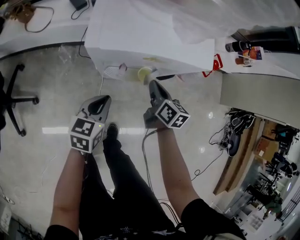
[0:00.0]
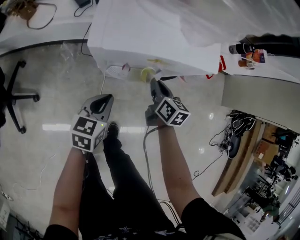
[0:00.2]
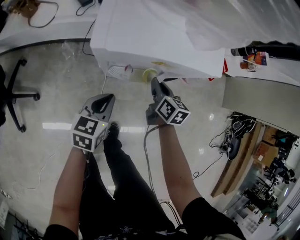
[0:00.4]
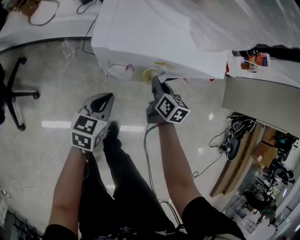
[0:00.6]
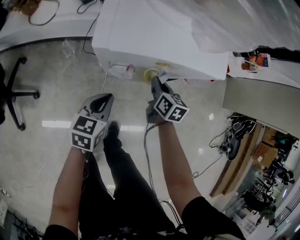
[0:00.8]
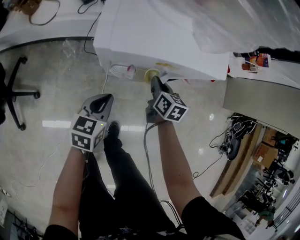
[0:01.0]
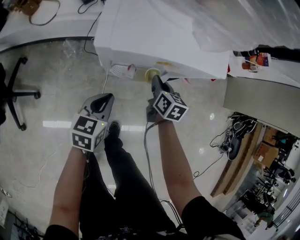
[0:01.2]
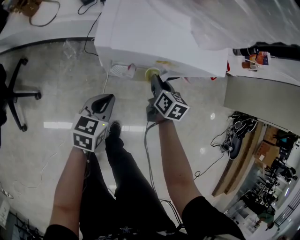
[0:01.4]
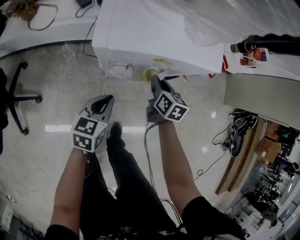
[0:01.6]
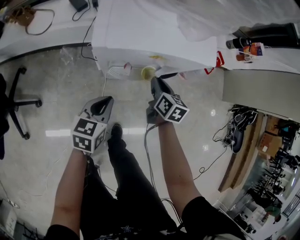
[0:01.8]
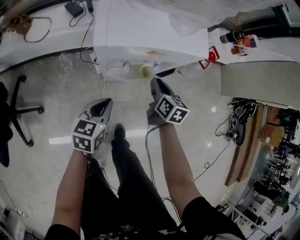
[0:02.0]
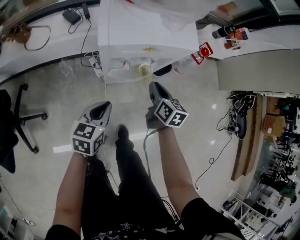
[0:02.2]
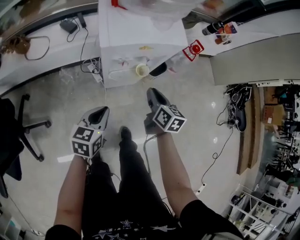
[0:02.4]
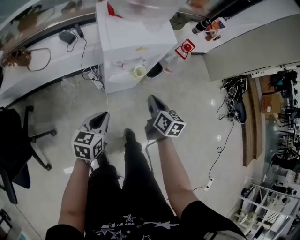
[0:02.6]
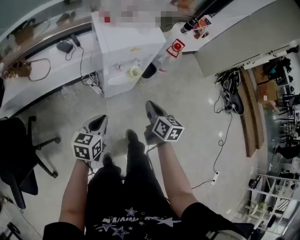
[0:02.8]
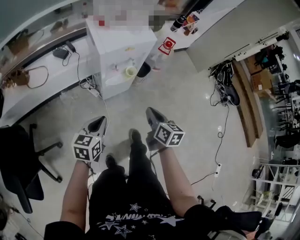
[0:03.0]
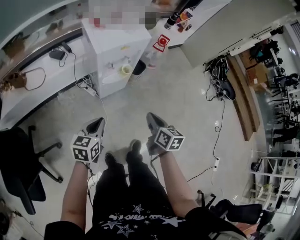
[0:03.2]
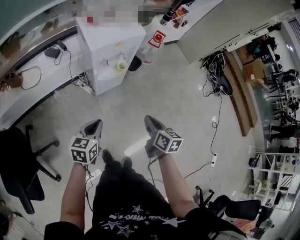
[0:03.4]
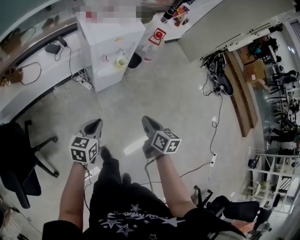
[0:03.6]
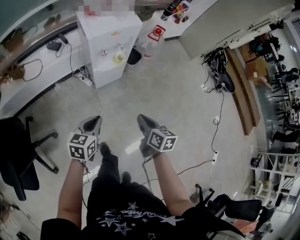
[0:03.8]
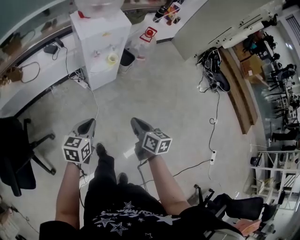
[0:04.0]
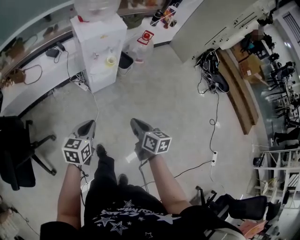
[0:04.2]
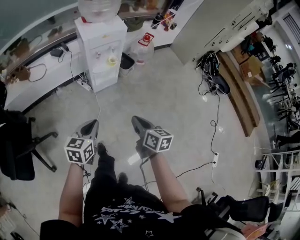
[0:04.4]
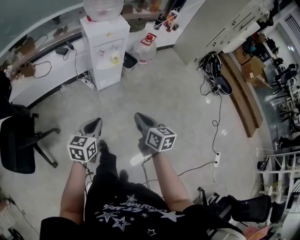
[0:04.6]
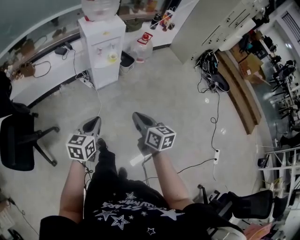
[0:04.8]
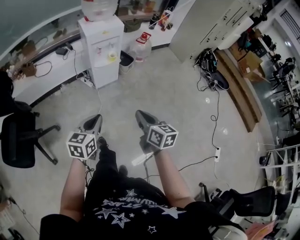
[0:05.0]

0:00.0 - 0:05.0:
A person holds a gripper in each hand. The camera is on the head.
0:00.0 - 0:01.6: The grippers move only a little.
0:01.6 - 0:03.4: The left gripper moves backward and upward, about 30 cm, and changes its angle by approximately 30 degrees; the right gripper moves backward and upward, approximately 50 cm, and turns by approximately 30 degrees.
0:03.4 - 0:05.0: The left gripper heads backward and to the right, covering roughly 35 cm. The right gripper is displaced backward by some 30 cm.

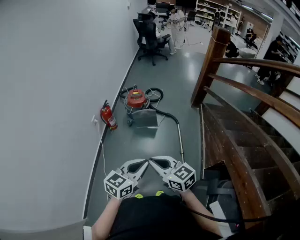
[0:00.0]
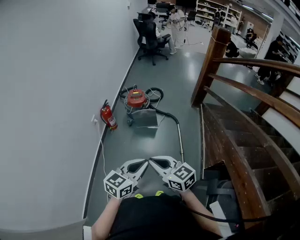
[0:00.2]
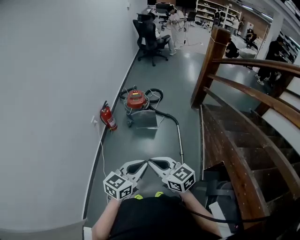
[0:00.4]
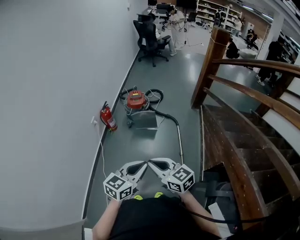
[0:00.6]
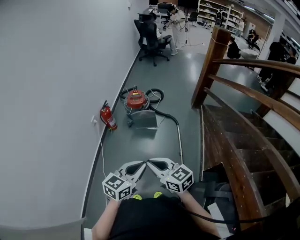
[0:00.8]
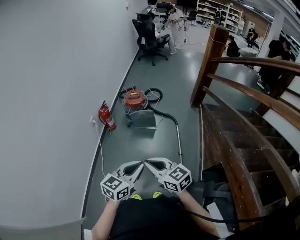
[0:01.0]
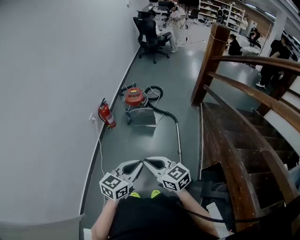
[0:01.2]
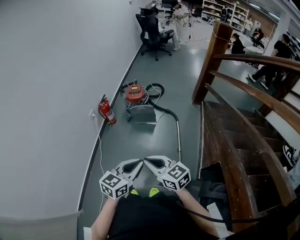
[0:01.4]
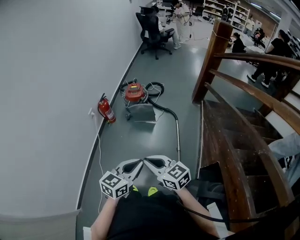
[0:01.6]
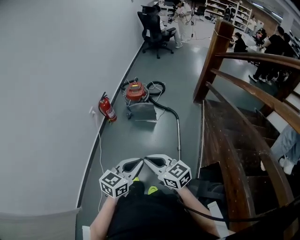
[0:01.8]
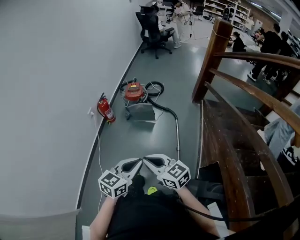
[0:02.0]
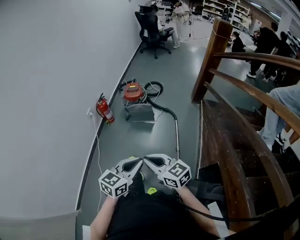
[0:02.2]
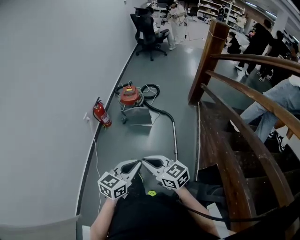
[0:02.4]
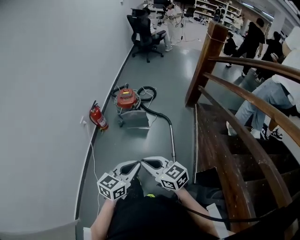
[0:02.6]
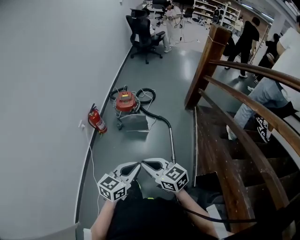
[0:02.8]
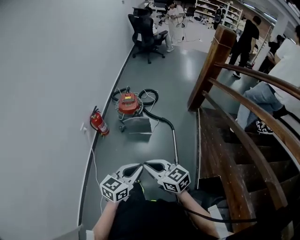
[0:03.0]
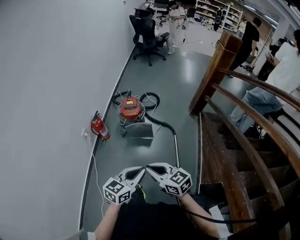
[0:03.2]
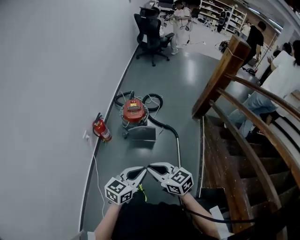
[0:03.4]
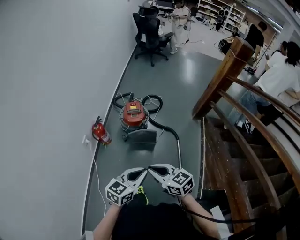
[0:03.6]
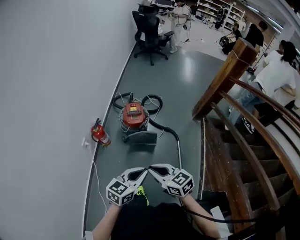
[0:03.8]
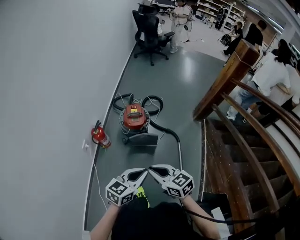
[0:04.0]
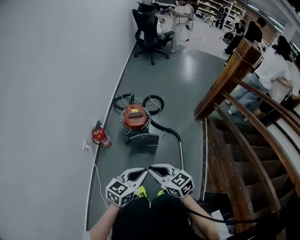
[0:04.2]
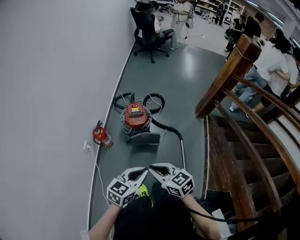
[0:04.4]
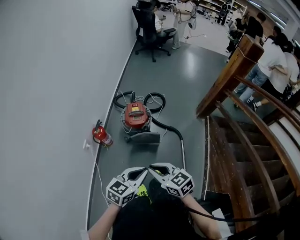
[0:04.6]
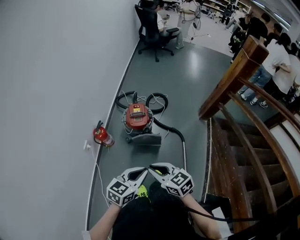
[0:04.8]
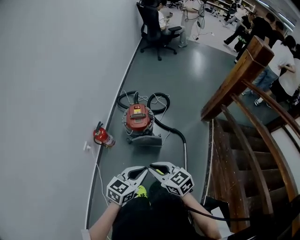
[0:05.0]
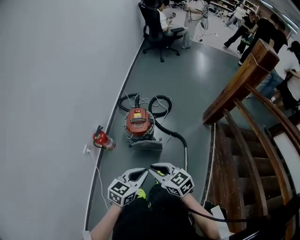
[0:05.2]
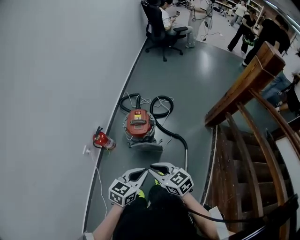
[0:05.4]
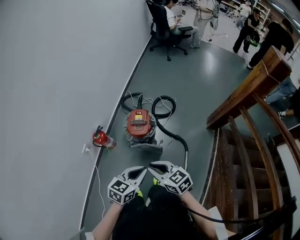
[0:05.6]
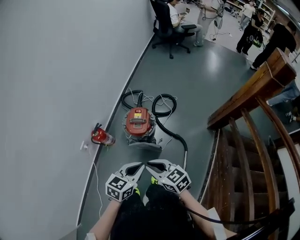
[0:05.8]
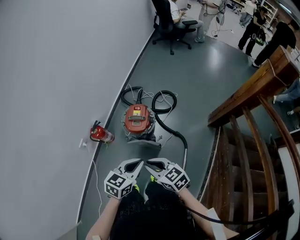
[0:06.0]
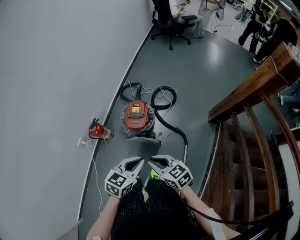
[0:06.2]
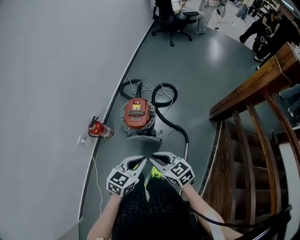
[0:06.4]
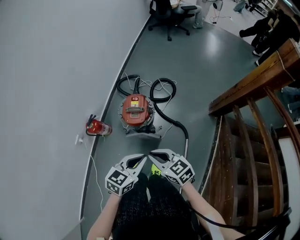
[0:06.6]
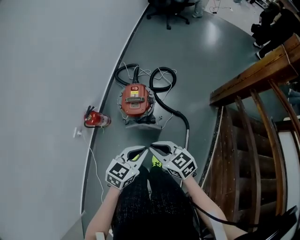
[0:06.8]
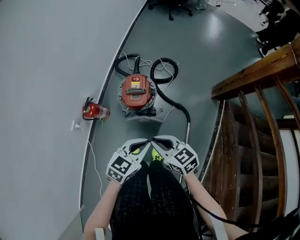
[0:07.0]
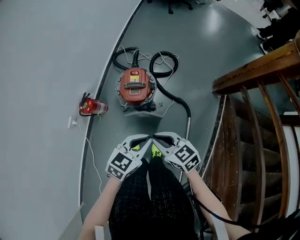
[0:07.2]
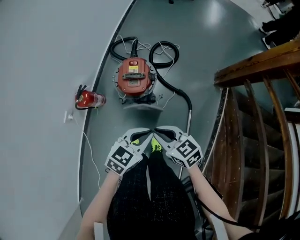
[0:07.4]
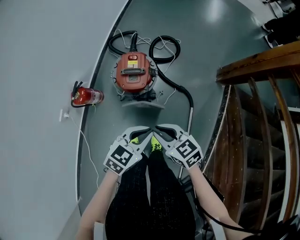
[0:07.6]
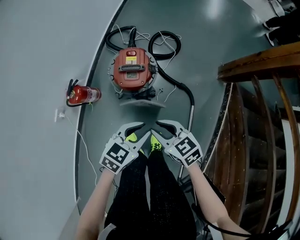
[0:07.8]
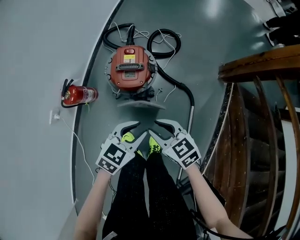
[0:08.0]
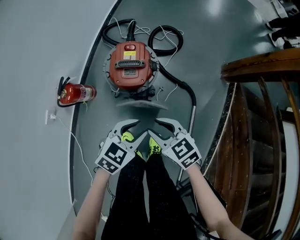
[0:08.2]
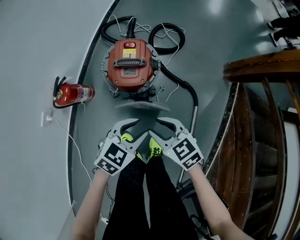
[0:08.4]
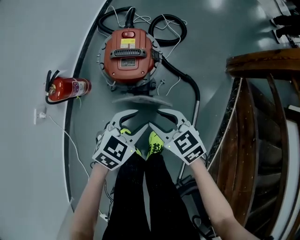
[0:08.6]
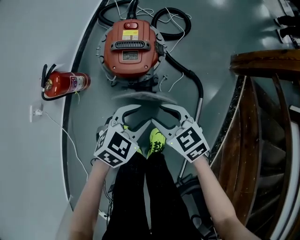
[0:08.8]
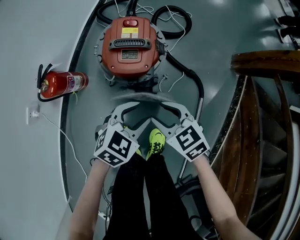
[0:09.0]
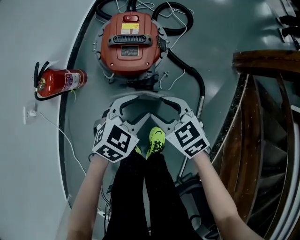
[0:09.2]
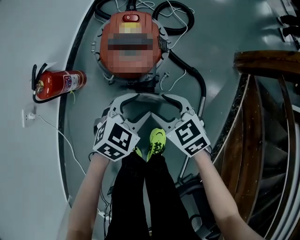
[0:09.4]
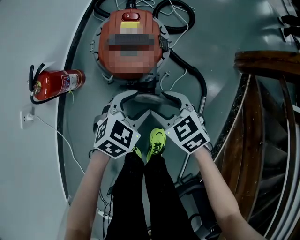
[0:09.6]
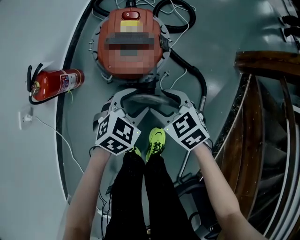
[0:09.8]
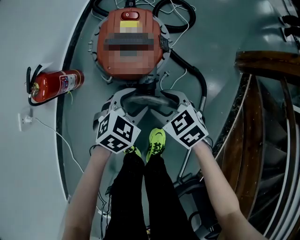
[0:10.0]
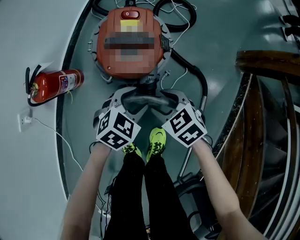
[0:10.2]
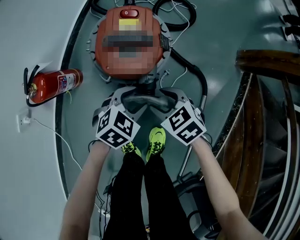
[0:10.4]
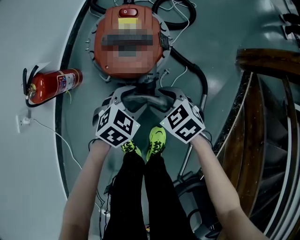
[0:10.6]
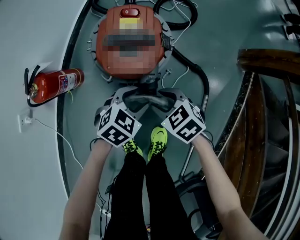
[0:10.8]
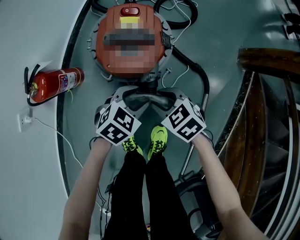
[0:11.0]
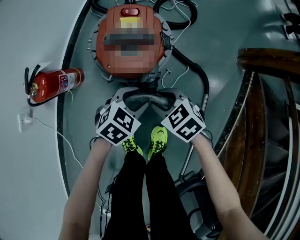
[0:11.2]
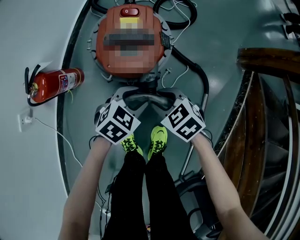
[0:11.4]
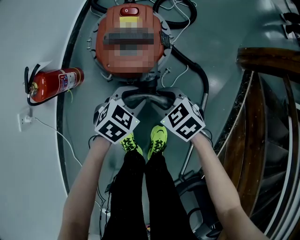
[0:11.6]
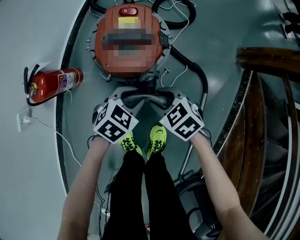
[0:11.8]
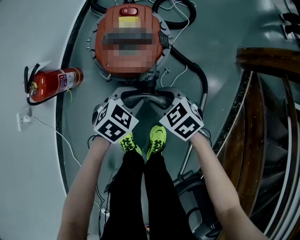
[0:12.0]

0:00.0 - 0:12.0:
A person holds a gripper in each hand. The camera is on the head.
0:00.0 - 0:01.6: Both grippers move to the right, some 5 cm.
0:01.6 - 0:03.0: The two grippers go approximately 15 cm forward.
0:03.0 - 0:04.4: The grippers both shift forward by some 20 cm.
0:04.4 - 0:06.0: The left gripper travels forward and to the right by roughly 20 cm. The right gripper travels forward, to the right and downward by approximately 20 cm.
0:06.0 - 0:07.6: Both grippers move downward, about 15 cm.
0:07.6 - 0:09.0: The two grippers go approximately 20 cm downward. The left gripper opens; the right gripper opens its fingers.
0:09.0 - 0:10.4: Both grippers travel together downward, roughly 10 cm.
0:10.4 - 0:12.0: The left gripper closes its fingers. The right gripper closes up.

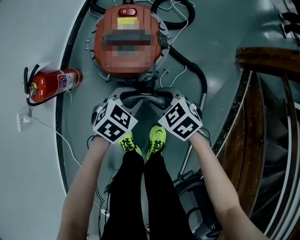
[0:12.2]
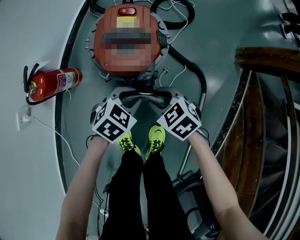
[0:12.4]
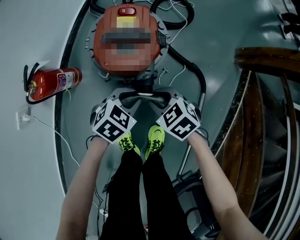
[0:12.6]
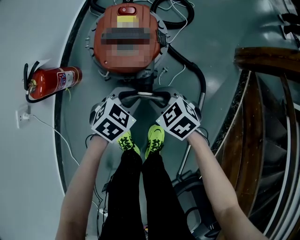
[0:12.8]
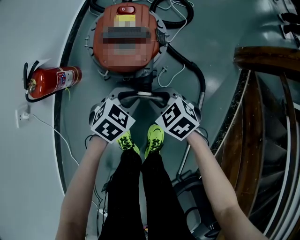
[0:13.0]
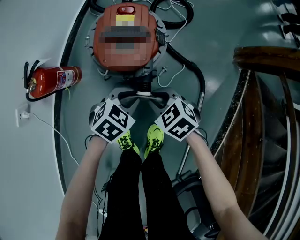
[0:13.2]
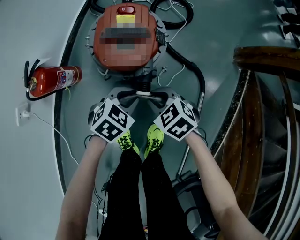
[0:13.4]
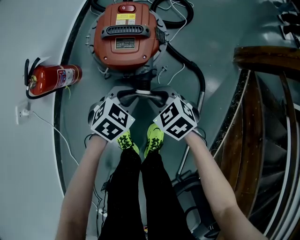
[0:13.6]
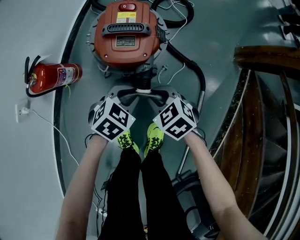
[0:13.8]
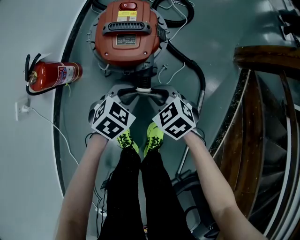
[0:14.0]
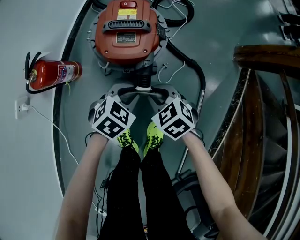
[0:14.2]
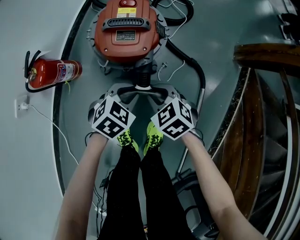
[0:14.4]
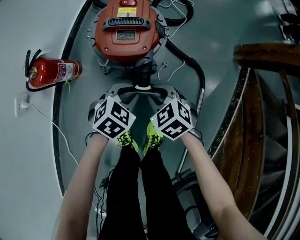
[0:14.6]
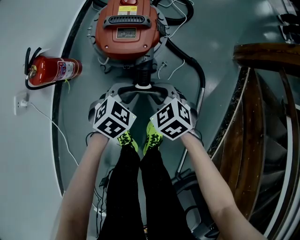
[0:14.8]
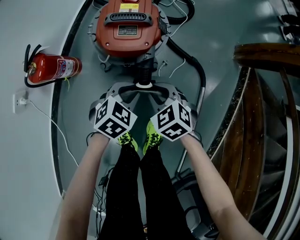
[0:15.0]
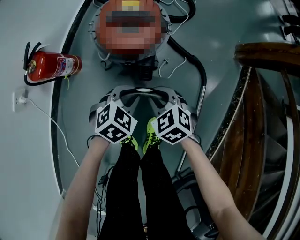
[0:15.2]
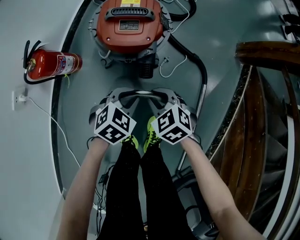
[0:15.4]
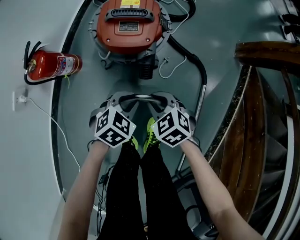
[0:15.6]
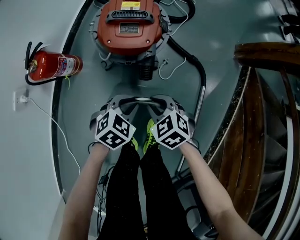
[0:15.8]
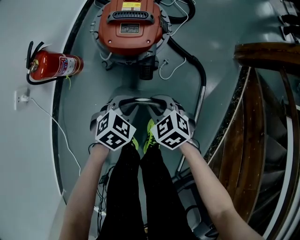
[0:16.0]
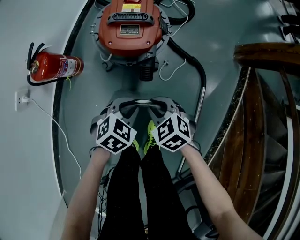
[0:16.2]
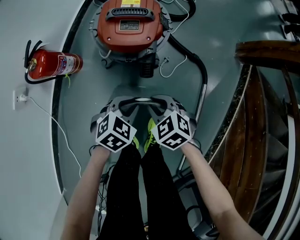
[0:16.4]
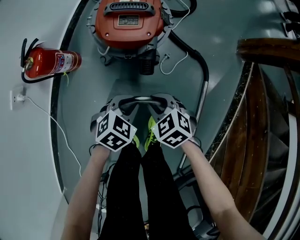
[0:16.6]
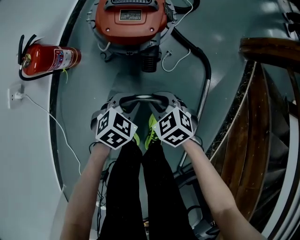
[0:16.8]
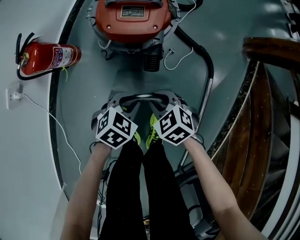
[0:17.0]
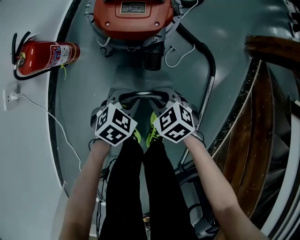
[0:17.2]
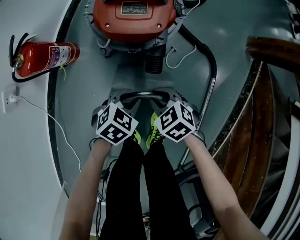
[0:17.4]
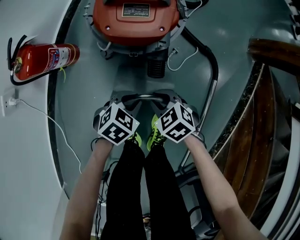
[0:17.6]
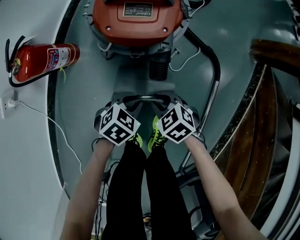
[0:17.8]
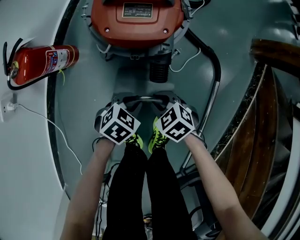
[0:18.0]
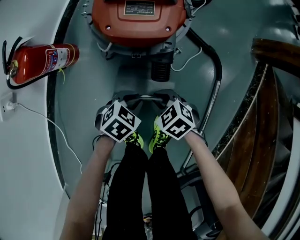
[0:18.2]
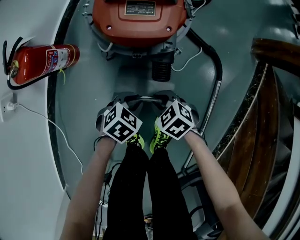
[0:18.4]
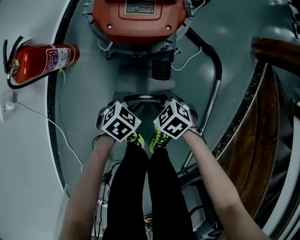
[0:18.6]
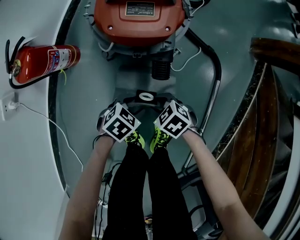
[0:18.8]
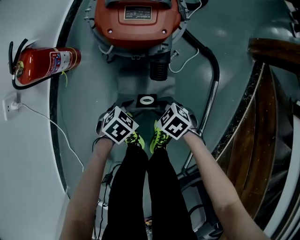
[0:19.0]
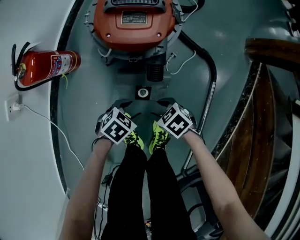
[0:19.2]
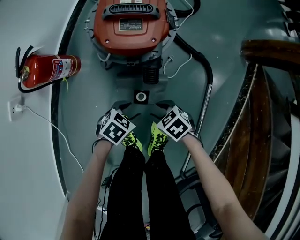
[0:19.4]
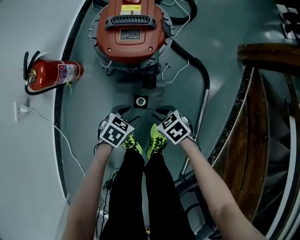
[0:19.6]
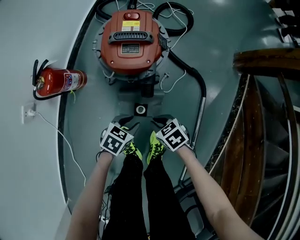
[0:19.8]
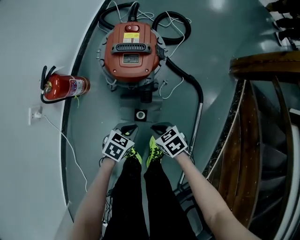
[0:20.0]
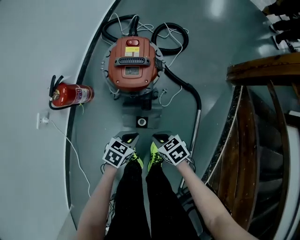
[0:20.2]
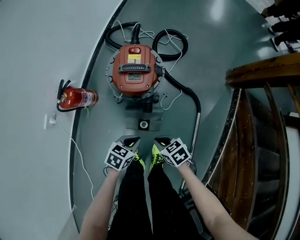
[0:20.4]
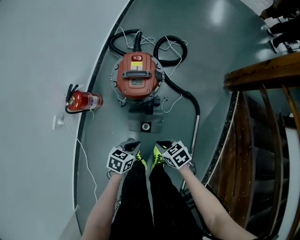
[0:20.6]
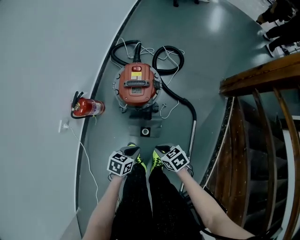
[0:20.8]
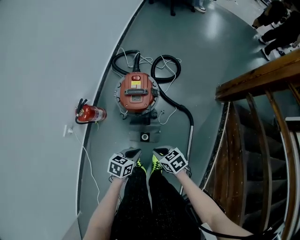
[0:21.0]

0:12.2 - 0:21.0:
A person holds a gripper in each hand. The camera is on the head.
0:12.2 - 0:15.2: There are only small adjustments of the grippers.
0:15.2 - 0:16.6: The left gripper moves backward, roughly 5 cm. The right gripper changes place by some 5 cm.
0:16.6 - 0:18.0: Both grippers travel together downward, about 10 cm.
0:18.0 - 0:19.6: The left gripper opens. The right gripper opens, then closes again.
0:19.6 - 0:21.0: Both grippers travel together upward, about 25 cm. The left gripper rotates approximately 20 degrees, and closes.
